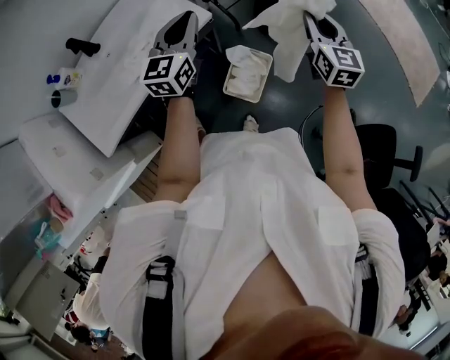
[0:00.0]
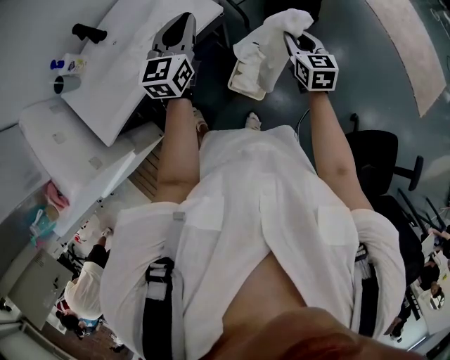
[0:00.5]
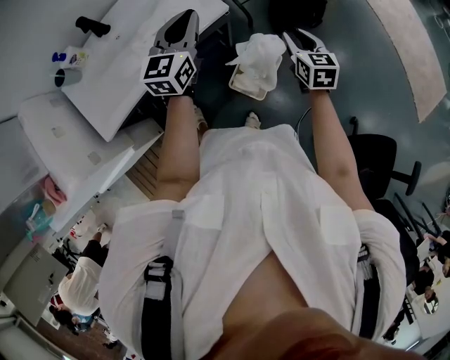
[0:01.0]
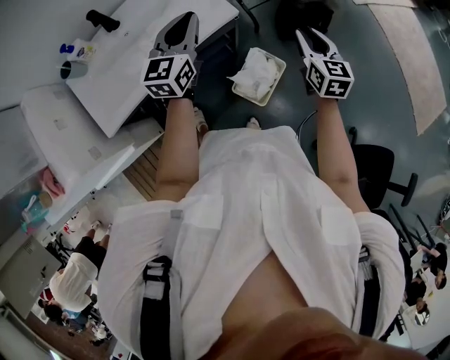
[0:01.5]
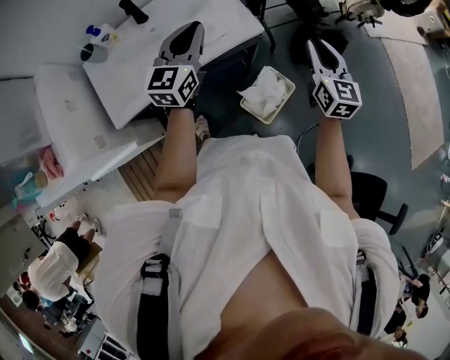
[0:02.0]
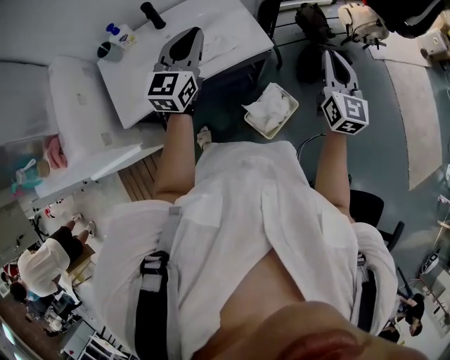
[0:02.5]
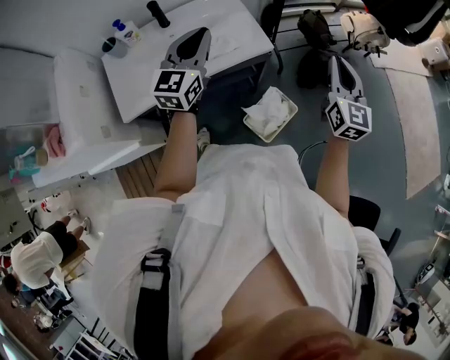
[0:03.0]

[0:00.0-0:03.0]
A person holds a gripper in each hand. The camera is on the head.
0:00.0 to 0:01.5: The right gripper shifts some 10 cm to the left and downward. The left gripper travels to the left by some 5 cm.
0:01.5 to 0:03.0: The left gripper moves upward and to the left, about 10 cm, while the right gripper is displaced upward by roughly 15 cm, and changes its angle by roughly 20 degrees.

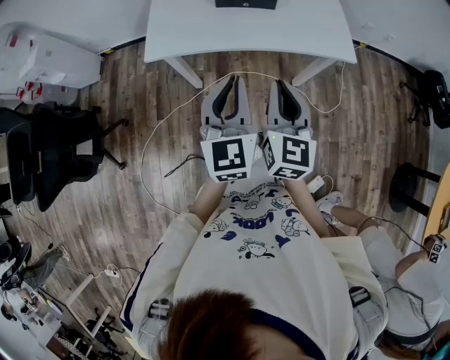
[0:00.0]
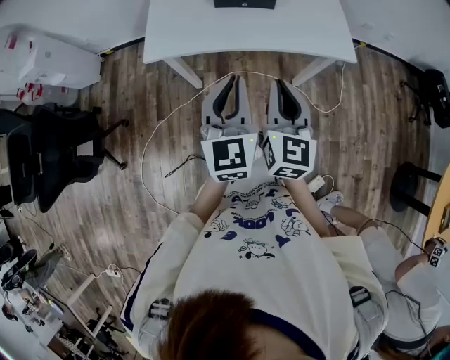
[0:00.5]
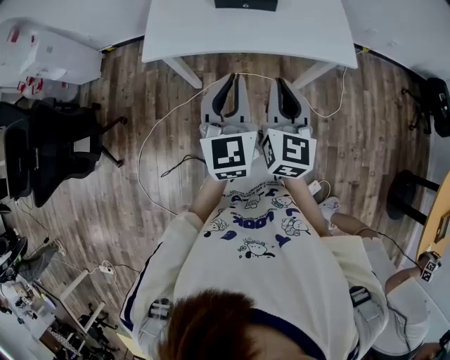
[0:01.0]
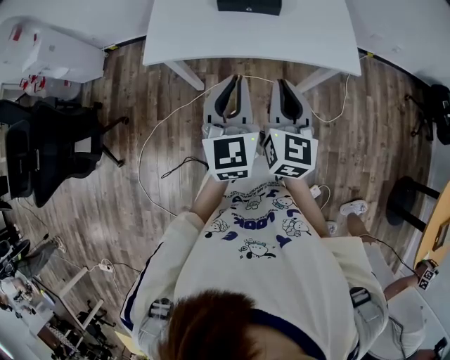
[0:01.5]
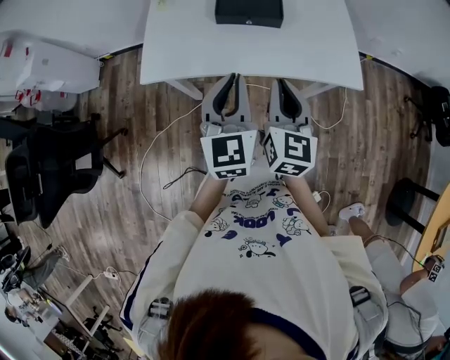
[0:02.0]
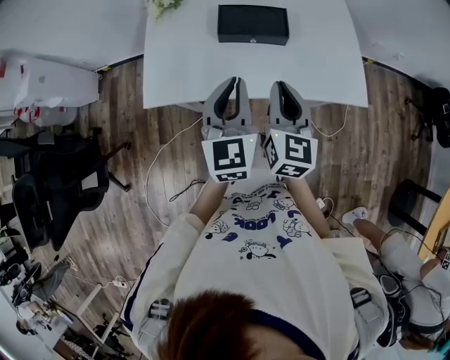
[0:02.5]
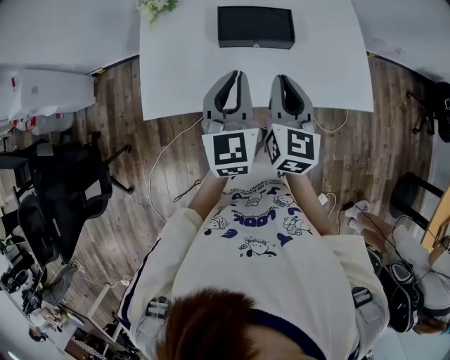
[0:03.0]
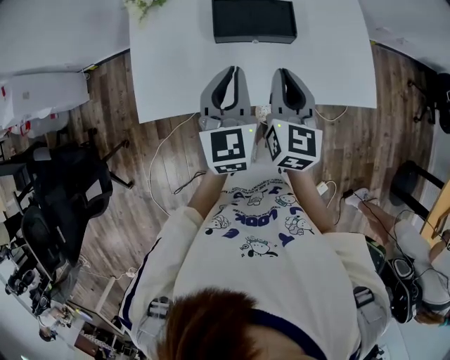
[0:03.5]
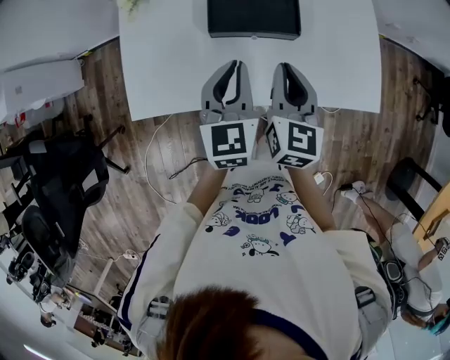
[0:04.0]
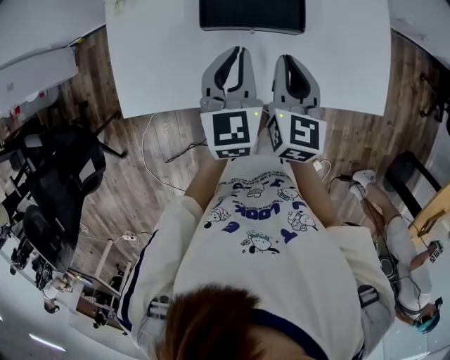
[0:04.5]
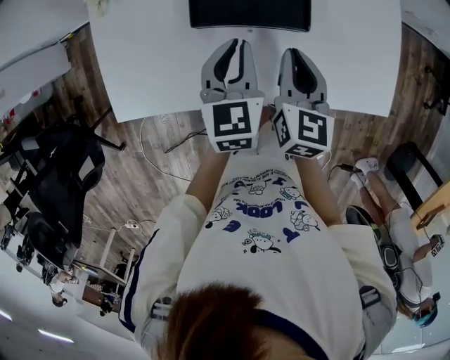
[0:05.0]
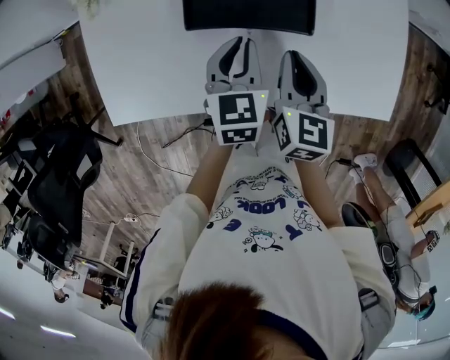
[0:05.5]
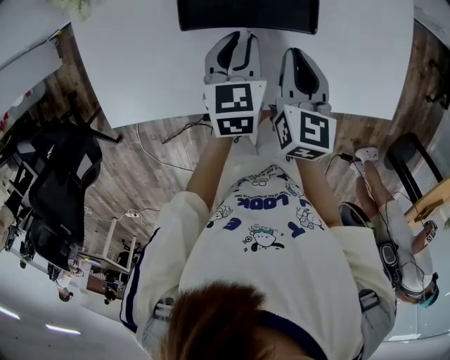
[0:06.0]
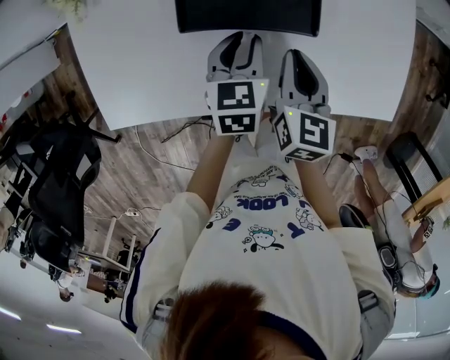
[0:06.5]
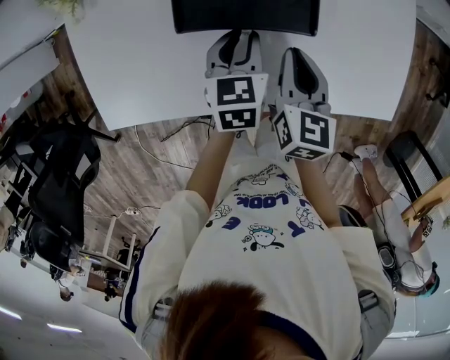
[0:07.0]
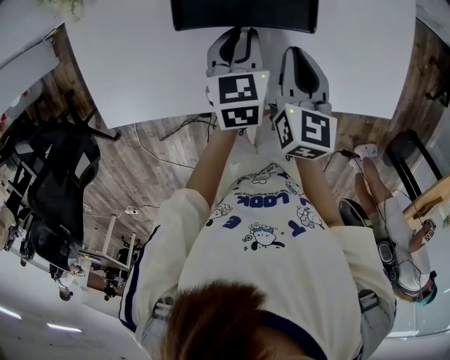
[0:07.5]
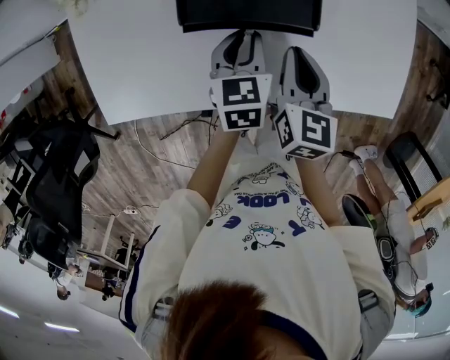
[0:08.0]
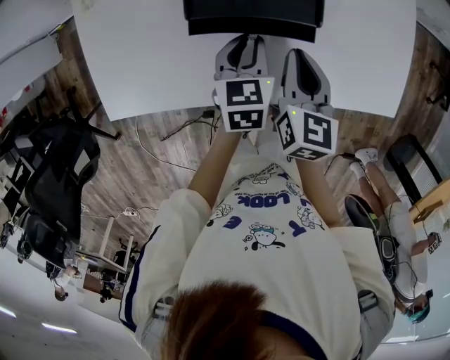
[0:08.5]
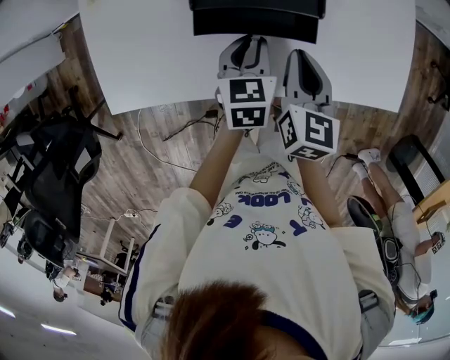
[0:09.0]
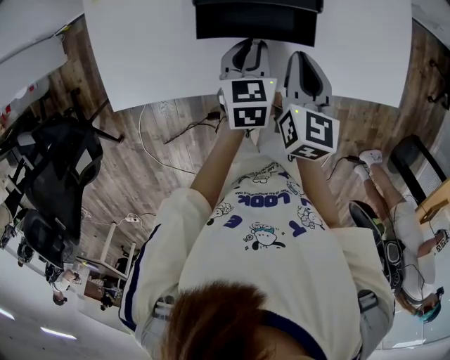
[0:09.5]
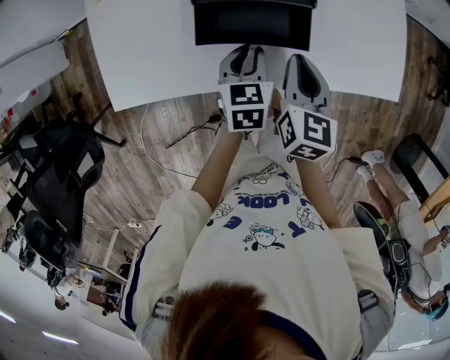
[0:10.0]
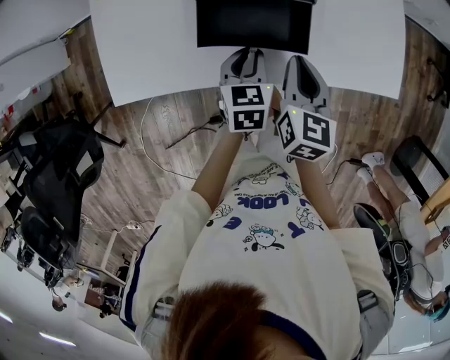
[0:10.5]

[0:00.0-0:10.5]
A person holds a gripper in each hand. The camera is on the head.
0:00.0 to 0:02.0: Both grippers travel together forward, about 15 cm.
0:02.0 to 0:04.0: Both grippers travel together forward, approximately 20 cm.
0:04.0 to 0:06.5: Both grippers move downward and forward, roughly 15 cm. The left gripper swivels some 30 degrees.
0:06.5 to 0:08.5: There are only small adjustments of the grippers.
0:08.5 to 0:10.5: The grippers both shift backward by some 10 cm.

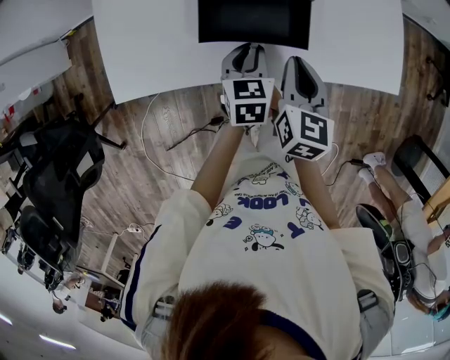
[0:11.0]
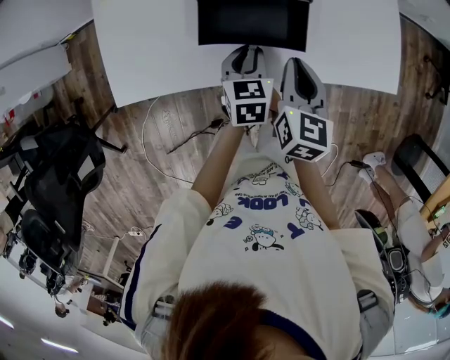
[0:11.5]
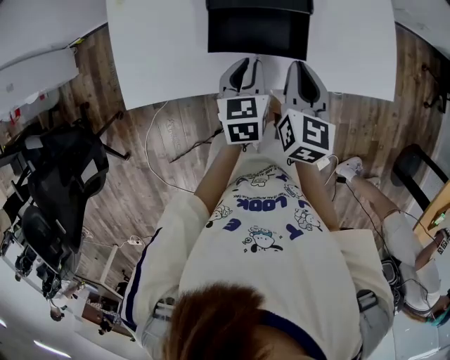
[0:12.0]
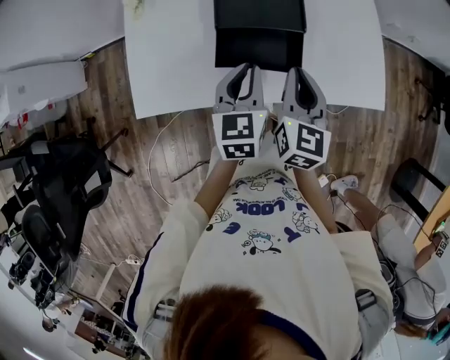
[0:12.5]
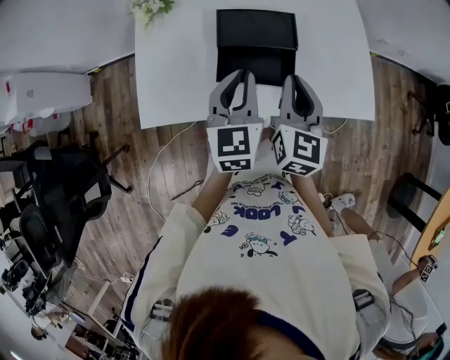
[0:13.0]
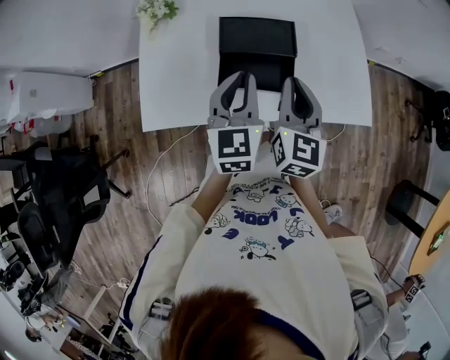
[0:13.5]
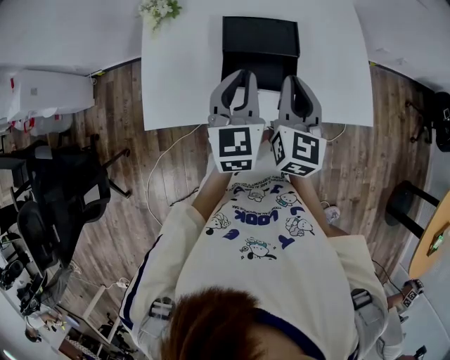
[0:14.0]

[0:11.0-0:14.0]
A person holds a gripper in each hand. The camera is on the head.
0:11.0 to 0:12.5: The left gripper travels upward by roughly 15 cm. The right gripper travels upward by about 10 cm.
0:12.5 to 0:14.0: The two grippers go some 10 cm upward.

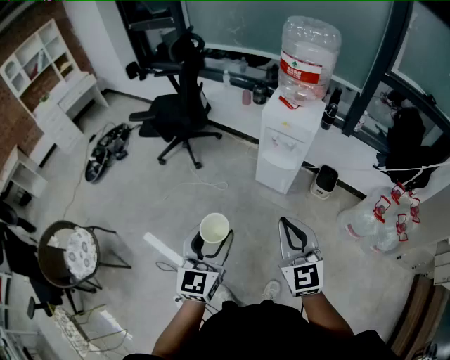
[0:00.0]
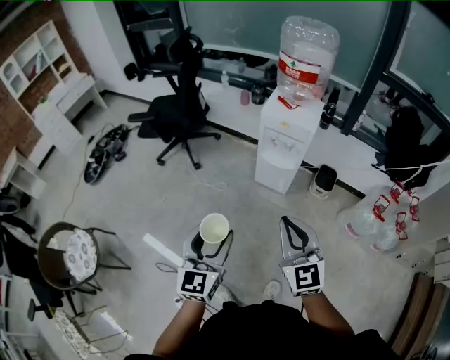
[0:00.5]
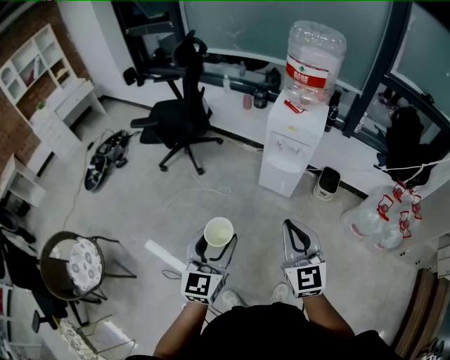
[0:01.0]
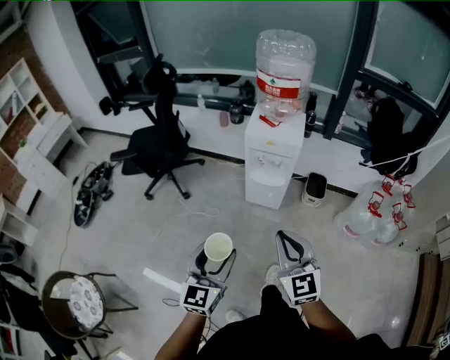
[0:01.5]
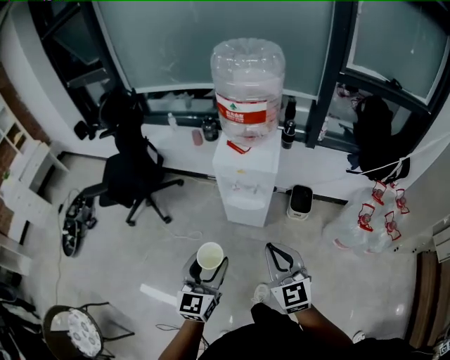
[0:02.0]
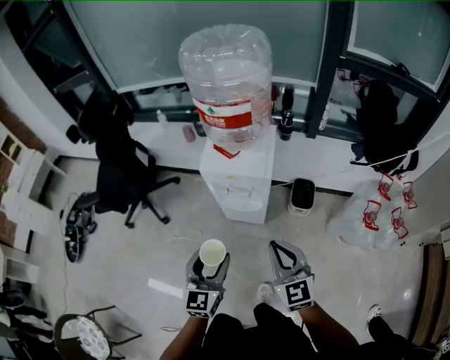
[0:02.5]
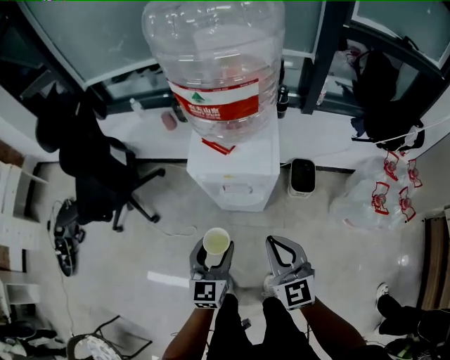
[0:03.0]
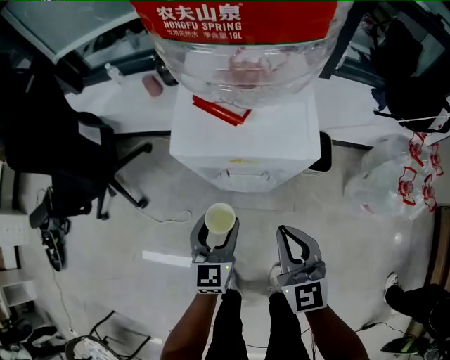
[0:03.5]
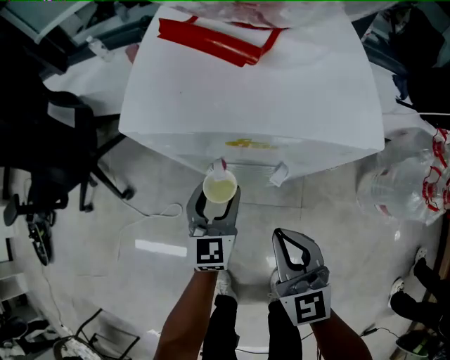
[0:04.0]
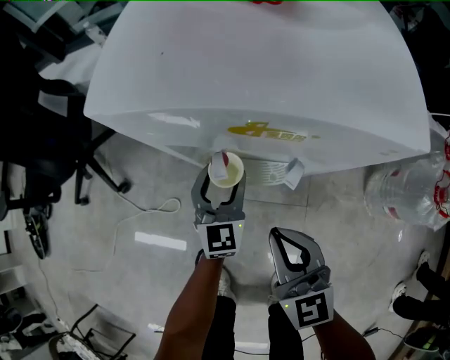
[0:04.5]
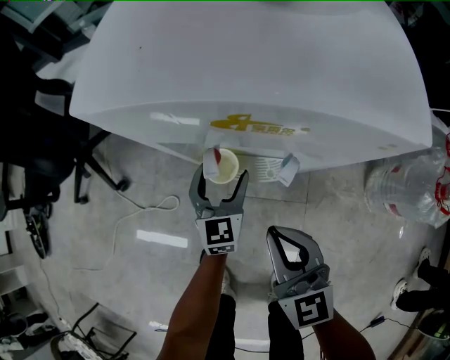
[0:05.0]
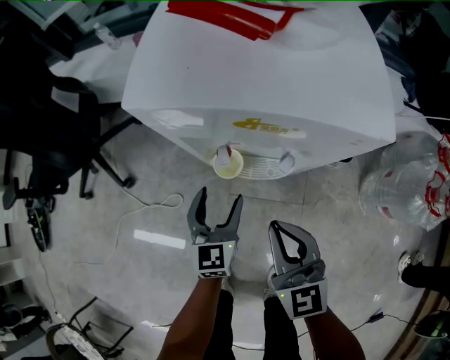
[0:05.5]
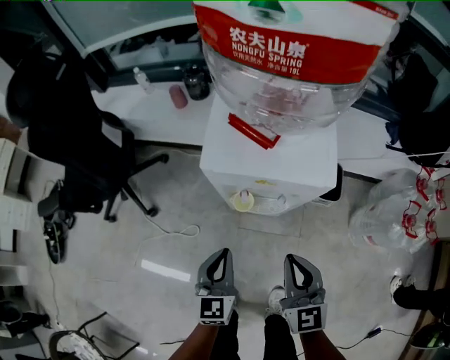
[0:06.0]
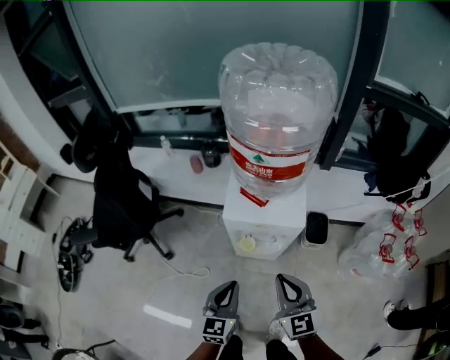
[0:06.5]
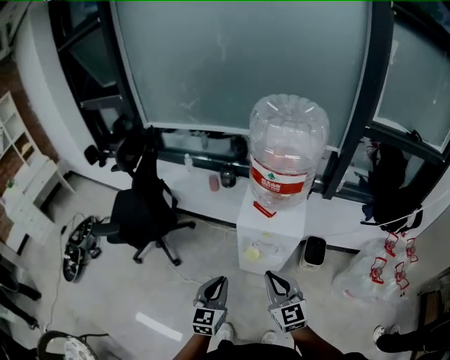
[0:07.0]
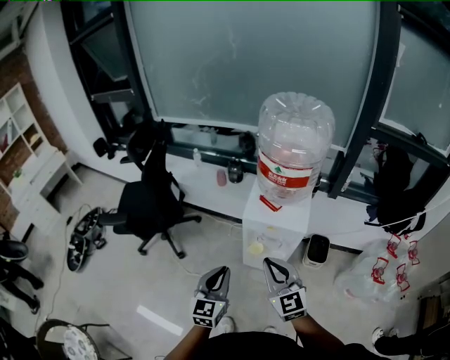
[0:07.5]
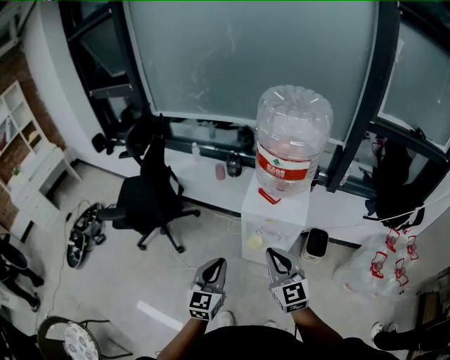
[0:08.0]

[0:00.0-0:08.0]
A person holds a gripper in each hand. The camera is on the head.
0:00.0 to 0:02.0: The two grippers go some 20 cm forward and to the right.
0:02.0 to 0:04.0: The grippers both shift downward and forward by some 50 cm.
0:04.0 to 0:06.0: The right gripper heads upward, covering roughly 10 cm. Meanwhile the left gripper goes approximately 20 cm upward and backward, and closes up.
0:06.0 to 0:08.0: The two grippers go approximately 25 cm upward.

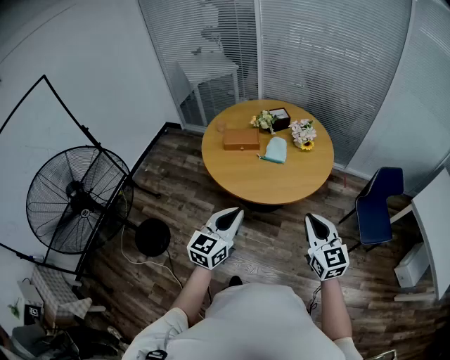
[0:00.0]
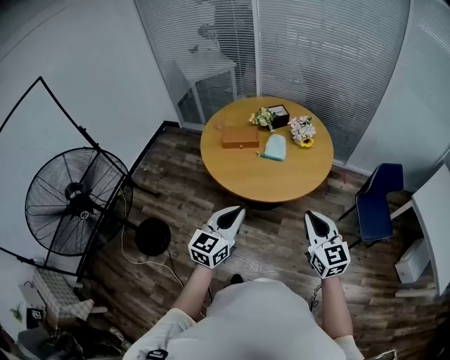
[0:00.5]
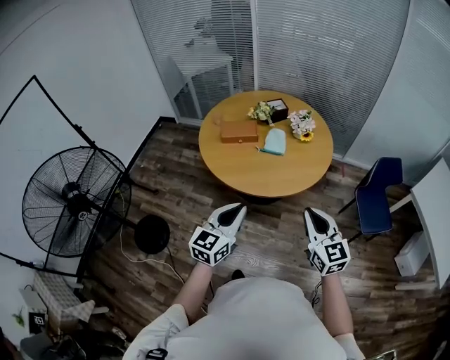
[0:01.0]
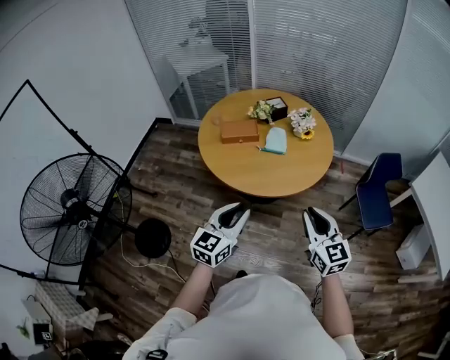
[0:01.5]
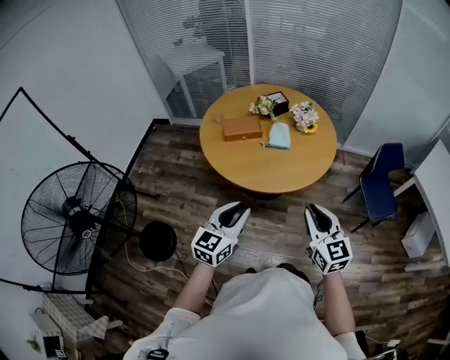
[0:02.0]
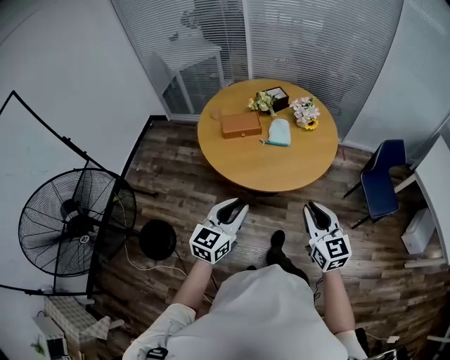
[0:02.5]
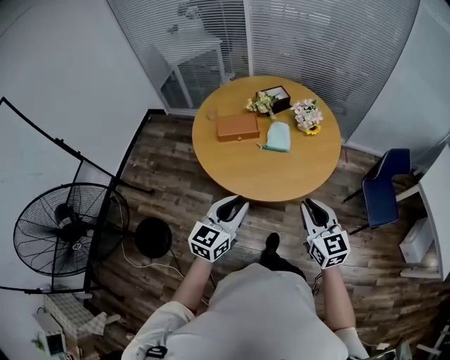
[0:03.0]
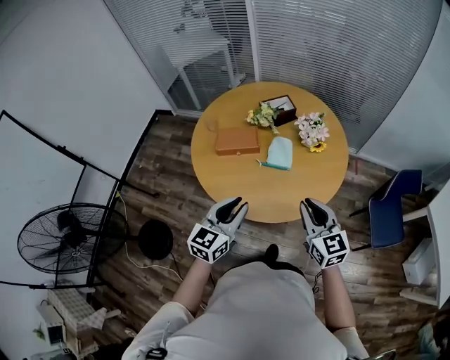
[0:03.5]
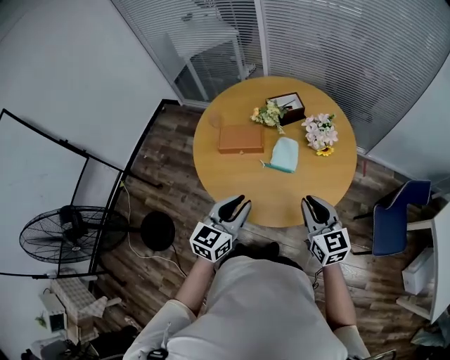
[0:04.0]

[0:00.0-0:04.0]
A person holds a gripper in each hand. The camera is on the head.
0:00.0 to 0:02.0: Both grippers move to the left, about 10 cm.
0:02.0 to 0:04.0: The two grippers go roughly 35 cm forward.
